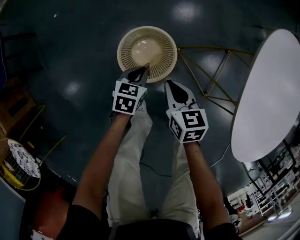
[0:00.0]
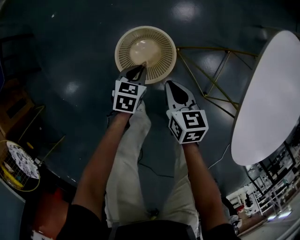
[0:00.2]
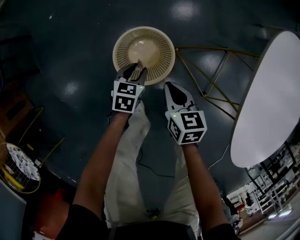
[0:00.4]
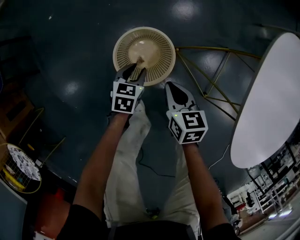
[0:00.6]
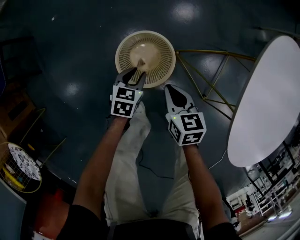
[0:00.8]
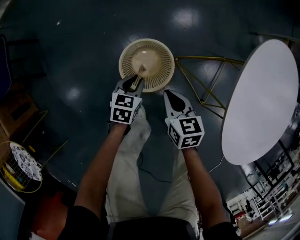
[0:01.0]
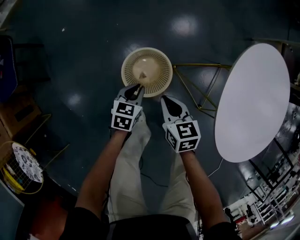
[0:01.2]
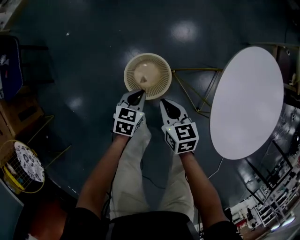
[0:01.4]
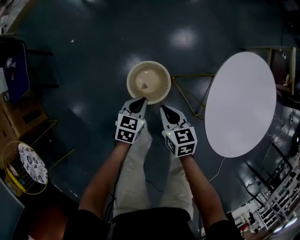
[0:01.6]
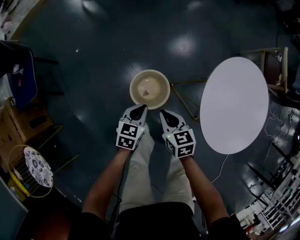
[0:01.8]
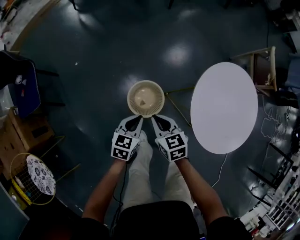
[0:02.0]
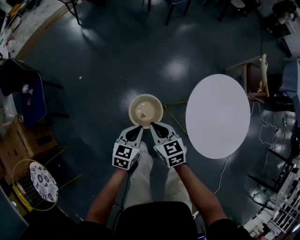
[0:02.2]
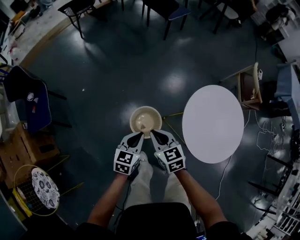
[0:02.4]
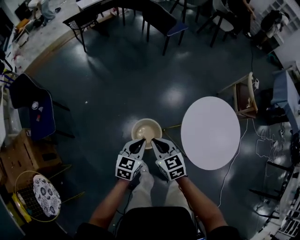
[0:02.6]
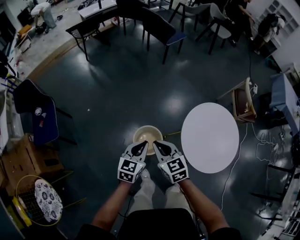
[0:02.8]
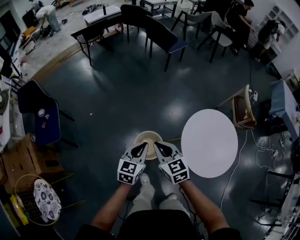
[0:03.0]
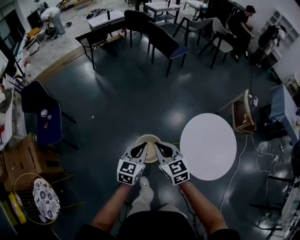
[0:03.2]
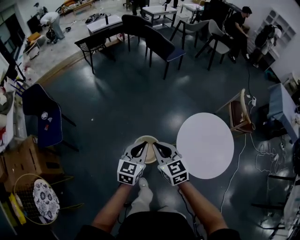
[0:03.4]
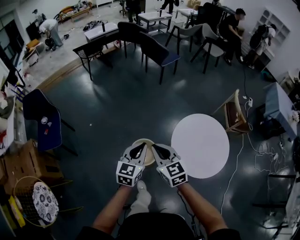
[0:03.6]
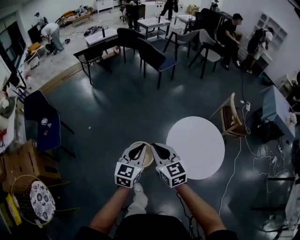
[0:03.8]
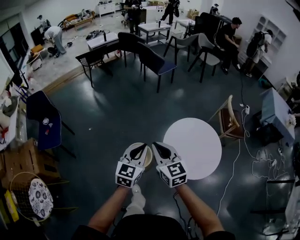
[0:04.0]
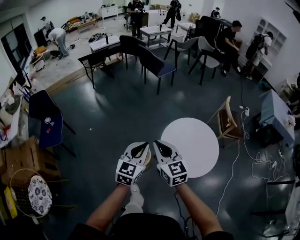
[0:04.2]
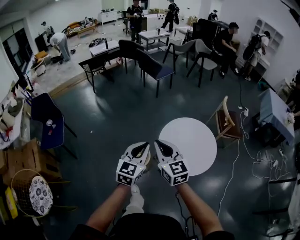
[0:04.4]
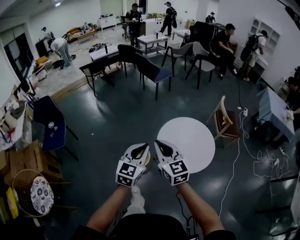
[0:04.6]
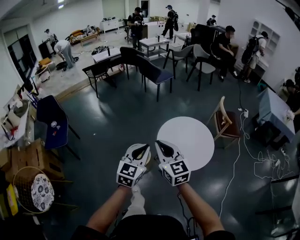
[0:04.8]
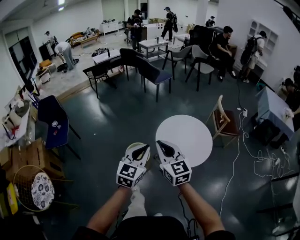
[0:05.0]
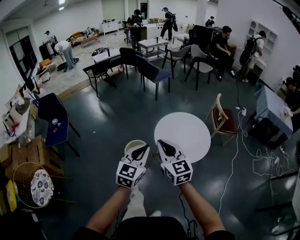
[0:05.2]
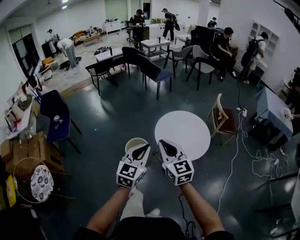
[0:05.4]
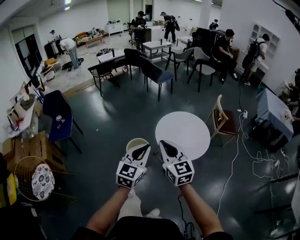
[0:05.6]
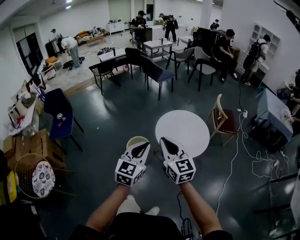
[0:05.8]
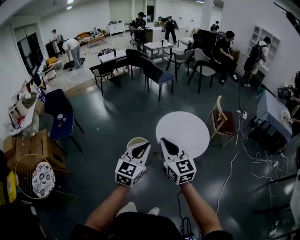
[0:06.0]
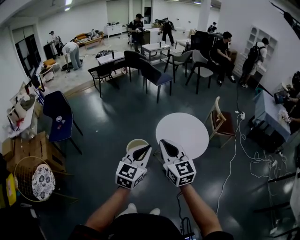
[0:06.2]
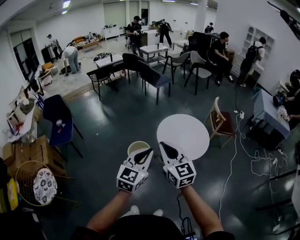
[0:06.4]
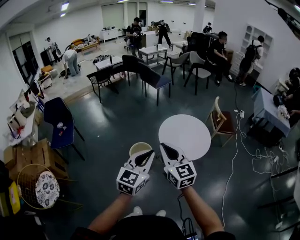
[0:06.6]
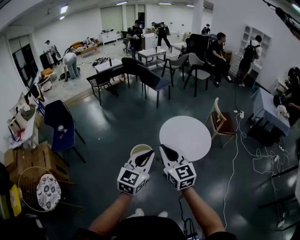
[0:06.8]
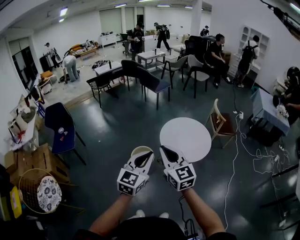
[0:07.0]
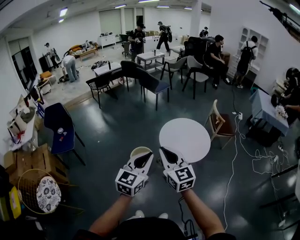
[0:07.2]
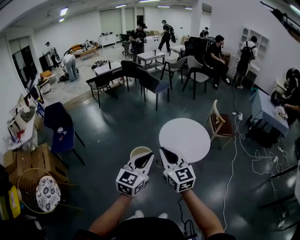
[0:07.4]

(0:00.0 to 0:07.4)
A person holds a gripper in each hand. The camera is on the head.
0:00.0 - 0:01.4: Both grippers travel together upward, roughly 15 cm. The left gripper opens, then closes again.
0:01.4 - 0:03.0: Both grippers move upward, about 50 cm. The right gripper swivels about 20 degrees, while the left gripper changes its angle by some 30 degrees.
0:03.0 - 0:04.4: The two grippers go some 30 cm upward, backward and to the right. The right gripper swivels roughly 20 degrees.
0:04.4 - 0:06.0: Both grippers travel together backward, some 25 cm.
0:06.0 - 0:07.4: The two grippers go roughly 5 cm to the left.

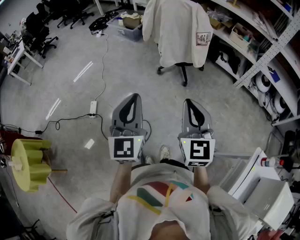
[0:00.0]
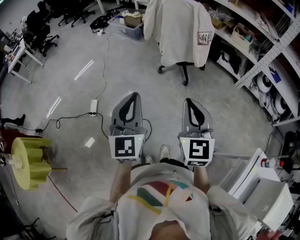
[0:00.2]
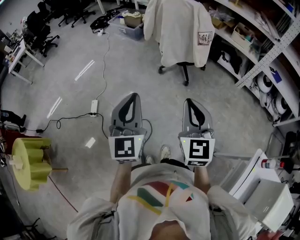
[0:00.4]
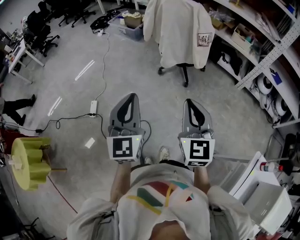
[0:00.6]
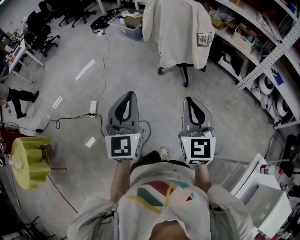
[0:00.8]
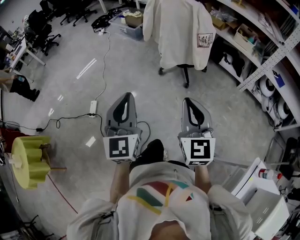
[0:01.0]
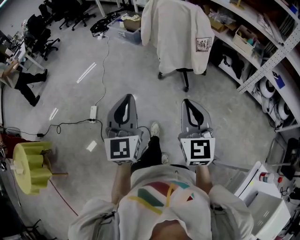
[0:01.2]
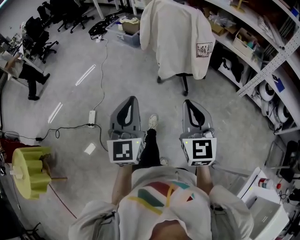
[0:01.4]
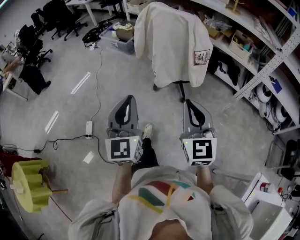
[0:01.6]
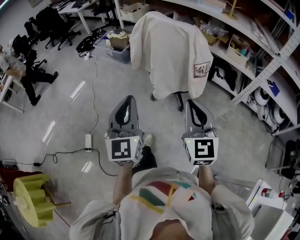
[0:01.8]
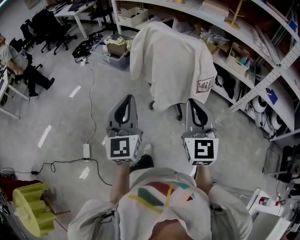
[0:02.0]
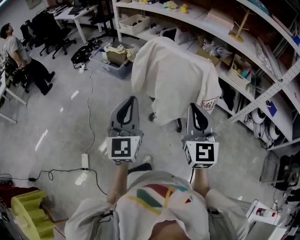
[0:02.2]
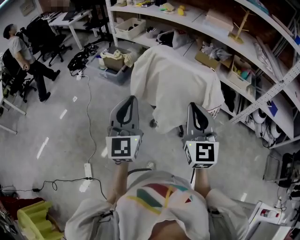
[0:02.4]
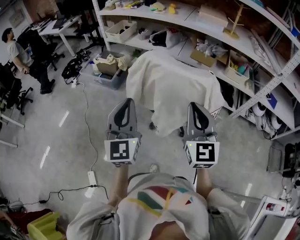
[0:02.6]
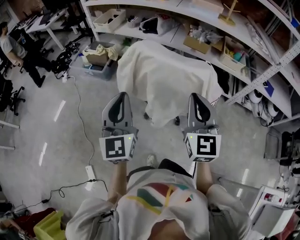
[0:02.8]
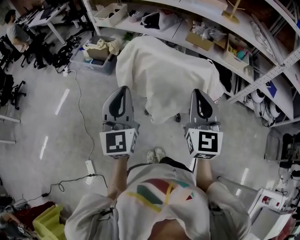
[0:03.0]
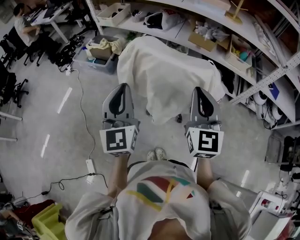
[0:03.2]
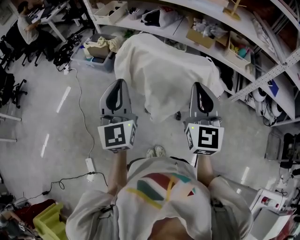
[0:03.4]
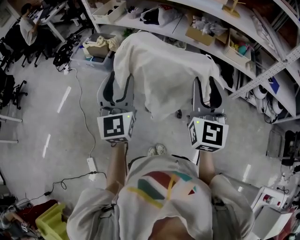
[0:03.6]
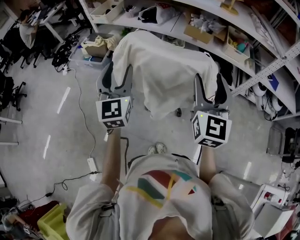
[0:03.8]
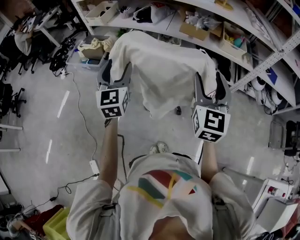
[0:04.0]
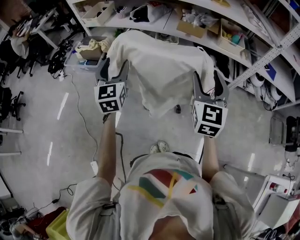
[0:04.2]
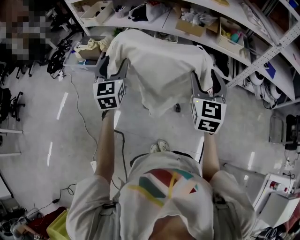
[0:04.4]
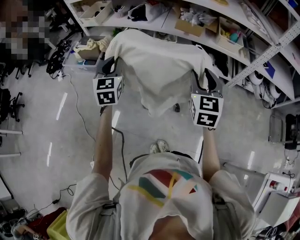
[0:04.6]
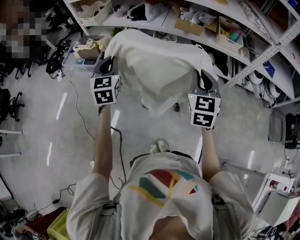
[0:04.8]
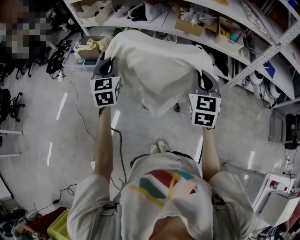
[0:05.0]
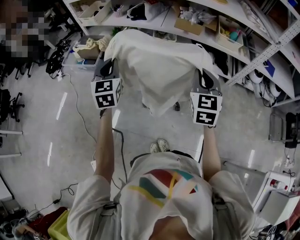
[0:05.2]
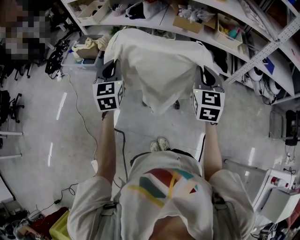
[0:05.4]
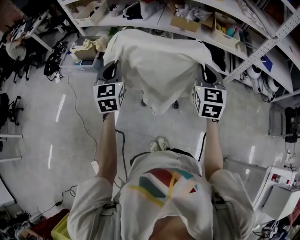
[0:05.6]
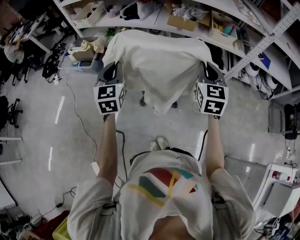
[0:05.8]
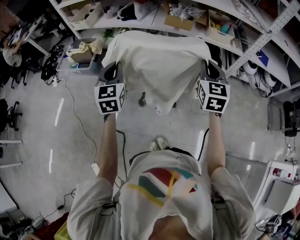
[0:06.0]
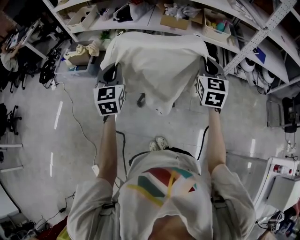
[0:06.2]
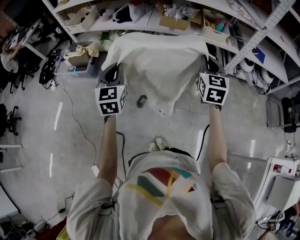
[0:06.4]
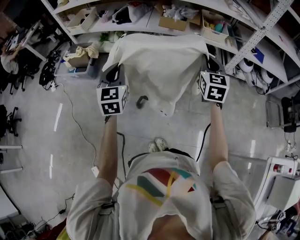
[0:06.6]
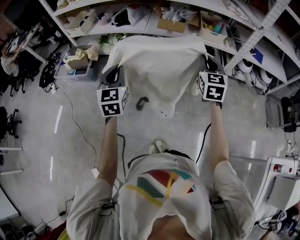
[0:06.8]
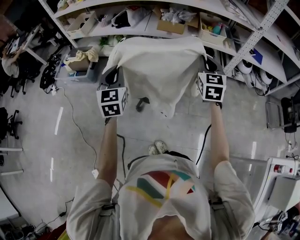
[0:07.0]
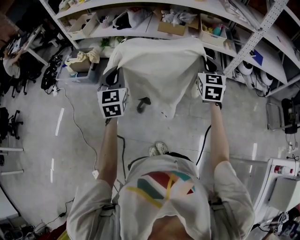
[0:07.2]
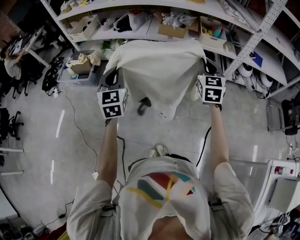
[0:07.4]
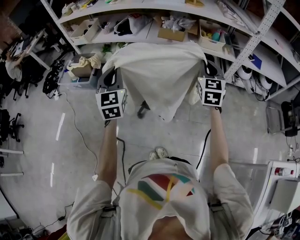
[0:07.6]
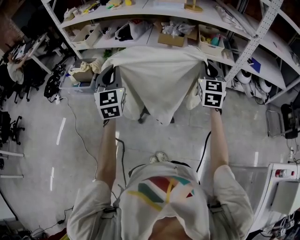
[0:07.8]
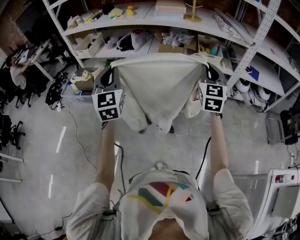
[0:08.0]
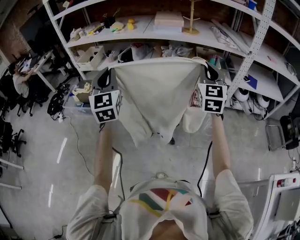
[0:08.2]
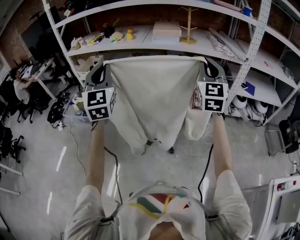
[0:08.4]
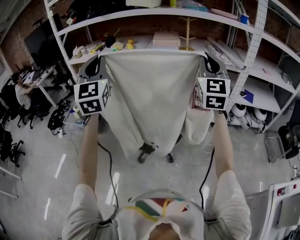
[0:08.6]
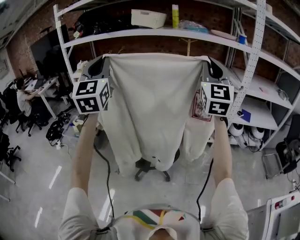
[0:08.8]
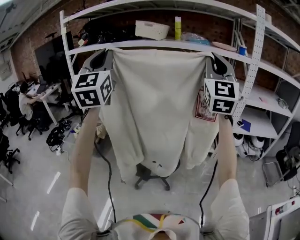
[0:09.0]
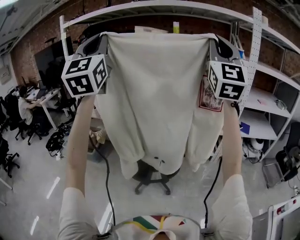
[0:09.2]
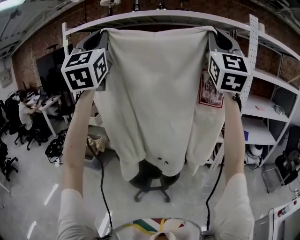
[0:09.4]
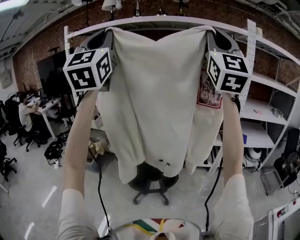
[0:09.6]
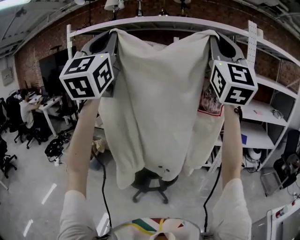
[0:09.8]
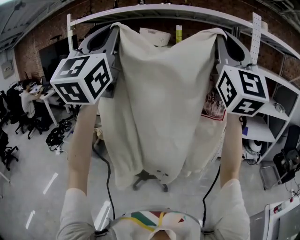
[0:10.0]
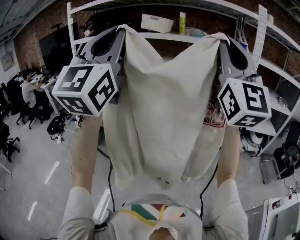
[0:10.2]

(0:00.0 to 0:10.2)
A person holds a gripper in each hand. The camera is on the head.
0:00.0 - 0:01.4: Both grippers move forward, roughly 10 cm.
0:01.4 - 0:03.0: The two grippers travel together, forward, some 50 cm. The right gripper rotates about 20 degrees.
0:03.0 - 0:04.4: The left gripper shifts roughly 15 cm forward and downward, and opens its fingers; the right gripper goes approximately 10 cm to the right and forward, and opens.
0:04.4 - 0:05.8: The left gripper closes up; the right gripper closes its fingers.
0:05.8 - 0:07.2: The right gripper travels to the right by about 5 cm.
0:07.2 - 0:08.8: The grippers both shift upward by some 35 cm. The left gripper tips its fingers upward by about 30 degrees. The right gripper angles its fingers upward, by some 40 degrees.
0:08.8 - 0:10.2: Both grippers move backward and upward, approximately 20 cm. The left gripper turns by about 20 degrees.

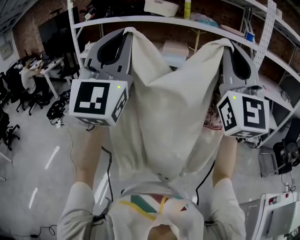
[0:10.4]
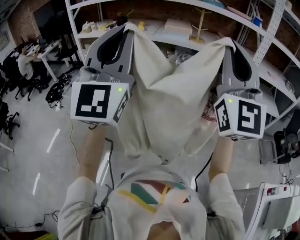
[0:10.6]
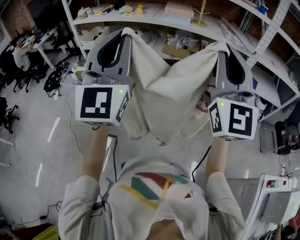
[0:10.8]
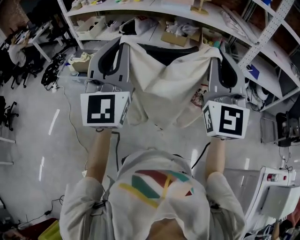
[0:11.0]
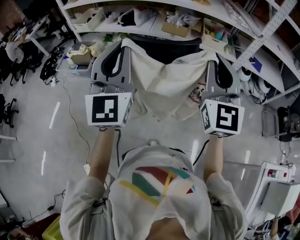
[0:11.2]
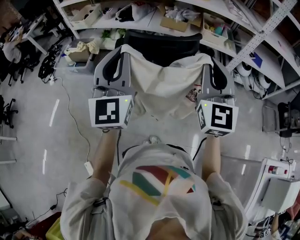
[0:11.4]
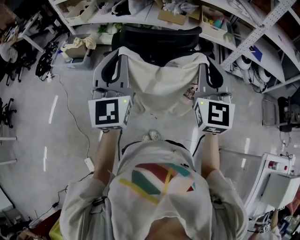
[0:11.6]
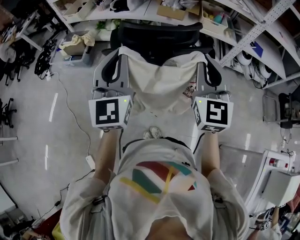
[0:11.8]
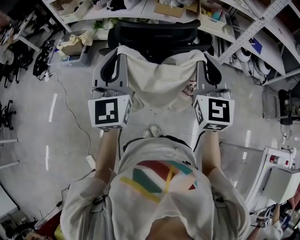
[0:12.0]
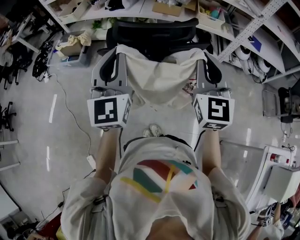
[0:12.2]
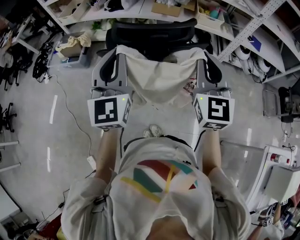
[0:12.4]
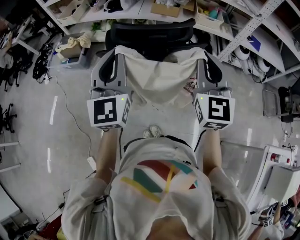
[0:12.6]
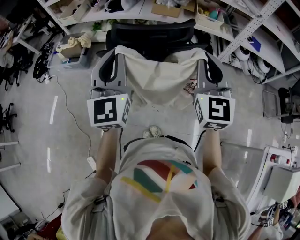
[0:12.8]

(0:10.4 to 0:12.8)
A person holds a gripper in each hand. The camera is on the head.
0:10.4 - 0:11.6: The two grippers go some 30 cm downward. The right gripper angles its fingers downward, by approximately 30 degrees, while the left gripper rotates roughly 30 degrees.
0:11.6 - 0:12.8: The grippers stay close to where they were, moving slightly.

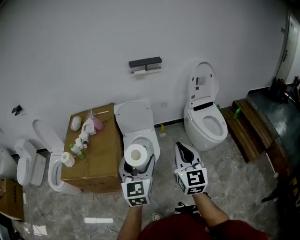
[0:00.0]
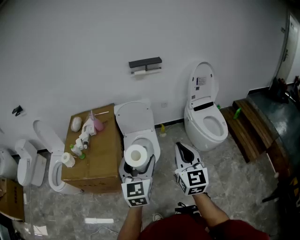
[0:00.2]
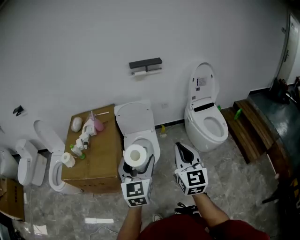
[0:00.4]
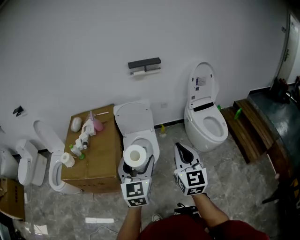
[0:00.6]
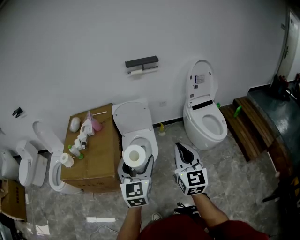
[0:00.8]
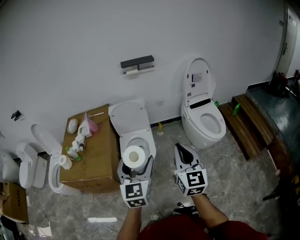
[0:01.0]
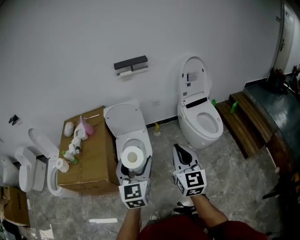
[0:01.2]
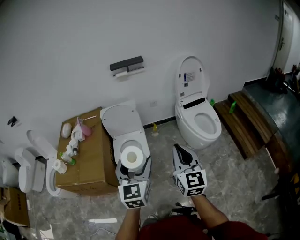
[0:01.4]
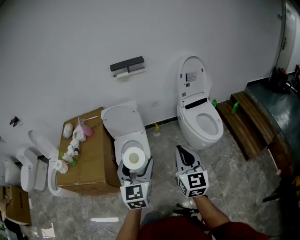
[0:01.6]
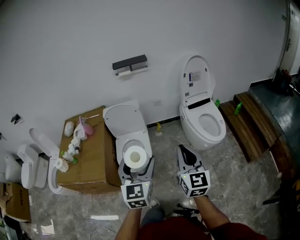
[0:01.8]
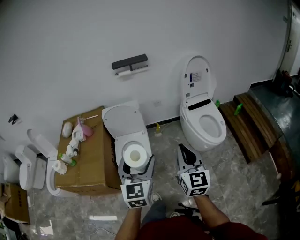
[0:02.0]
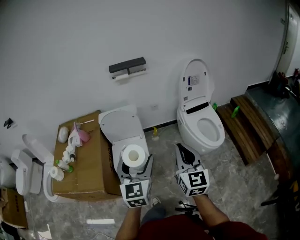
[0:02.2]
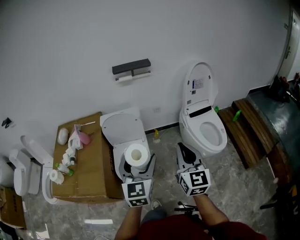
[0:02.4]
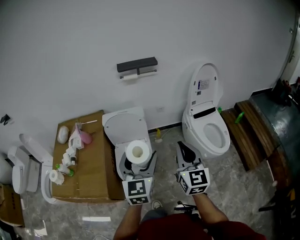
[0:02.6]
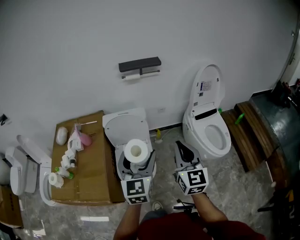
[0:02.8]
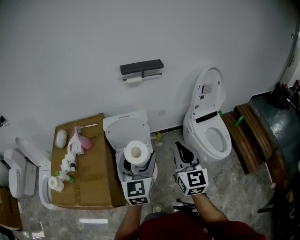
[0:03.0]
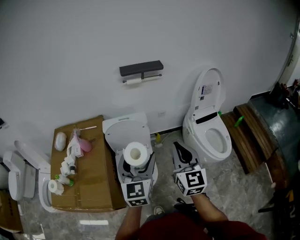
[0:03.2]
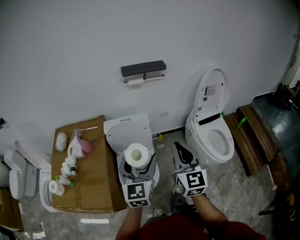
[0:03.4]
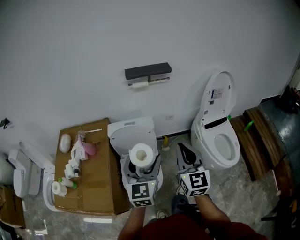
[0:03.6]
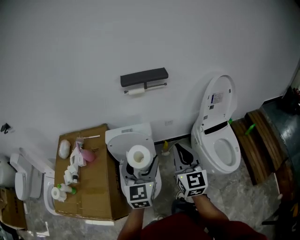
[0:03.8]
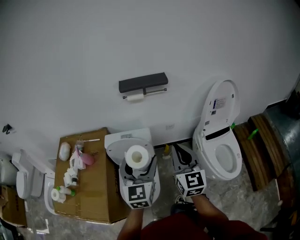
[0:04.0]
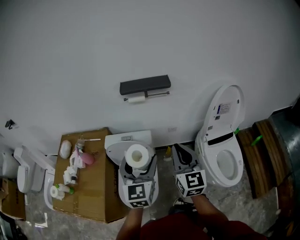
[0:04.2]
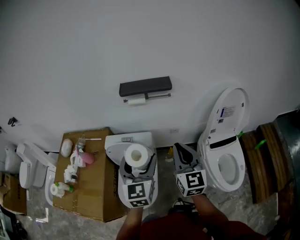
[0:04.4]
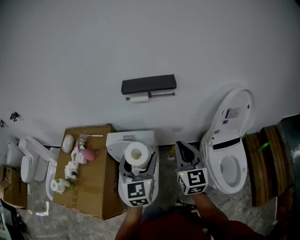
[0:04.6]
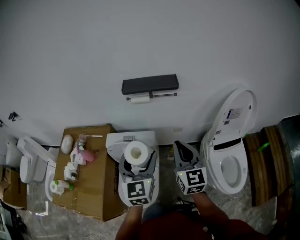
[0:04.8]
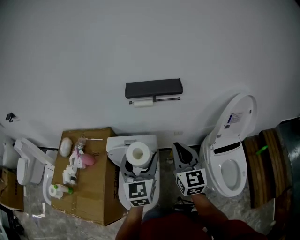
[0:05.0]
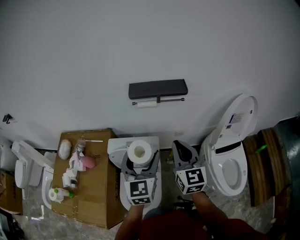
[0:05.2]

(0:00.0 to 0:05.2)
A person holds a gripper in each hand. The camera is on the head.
0:00.0 - 0:01.8: The left gripper is displaced to the right and forward by some 15 cm. Meanwhile the right gripper shifts approximately 15 cm to the right.
0:01.8 - 0:03.4: Both grippers move forward and to the left, roughly 30 cm.
0:03.4 - 0:05.2: The grippers both shift forward by roughly 30 cm.
